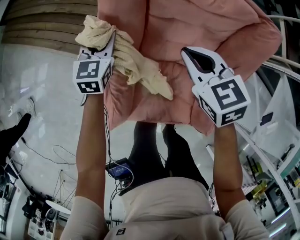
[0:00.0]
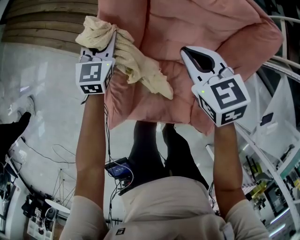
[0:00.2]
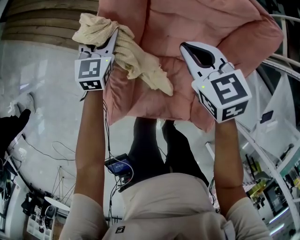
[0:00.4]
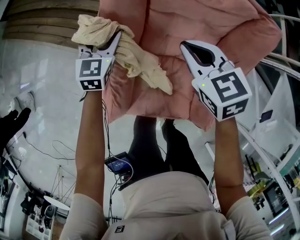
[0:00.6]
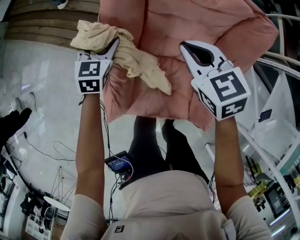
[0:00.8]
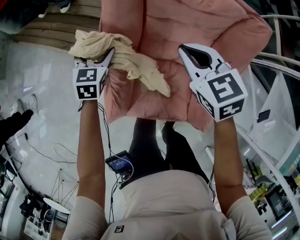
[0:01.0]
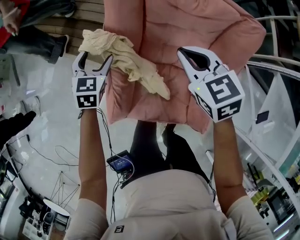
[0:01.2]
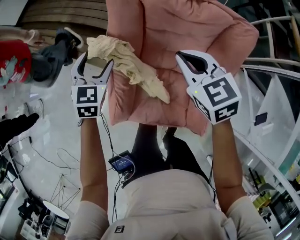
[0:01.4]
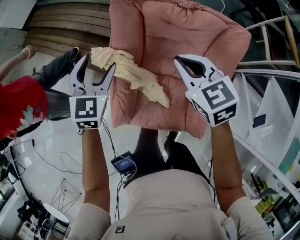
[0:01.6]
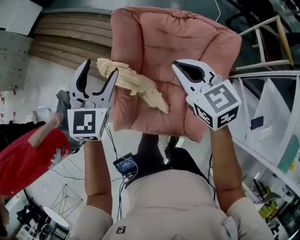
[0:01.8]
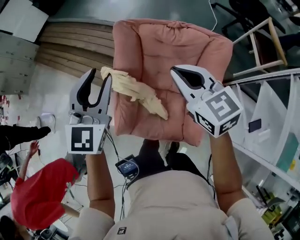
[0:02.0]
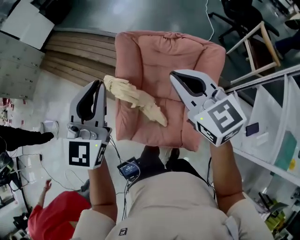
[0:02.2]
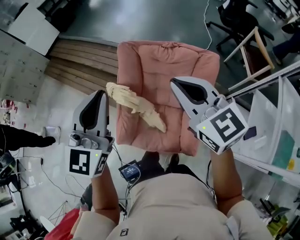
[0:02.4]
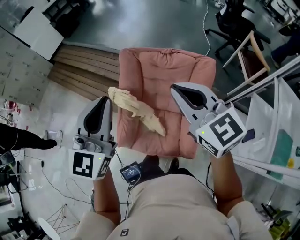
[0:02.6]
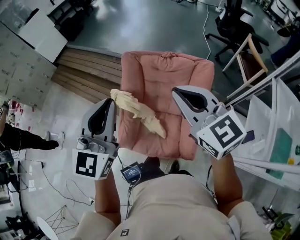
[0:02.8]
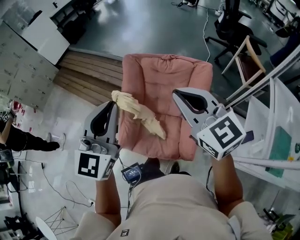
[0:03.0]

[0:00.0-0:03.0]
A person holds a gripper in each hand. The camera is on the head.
0.0 to 1.6 s: The left gripper shifts approximately 25 cm upward and backward, and opens; the right gripper heads upward, covering about 15 cm.
1.6 to 3.0 s: The grippers both shift upward and backward by roughly 40 cm. The right gripper changes its angle by some 30 degrees; the left gripper rotates some 30 degrees, and closes up.

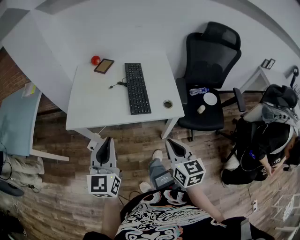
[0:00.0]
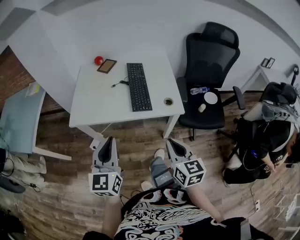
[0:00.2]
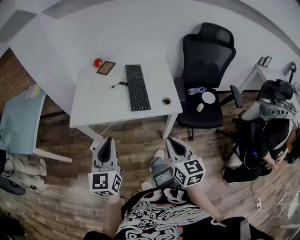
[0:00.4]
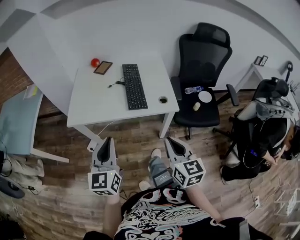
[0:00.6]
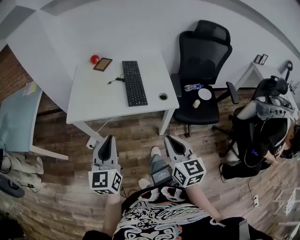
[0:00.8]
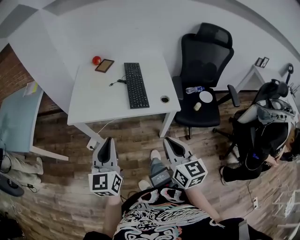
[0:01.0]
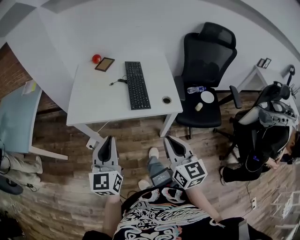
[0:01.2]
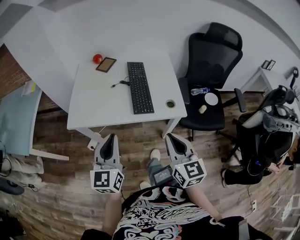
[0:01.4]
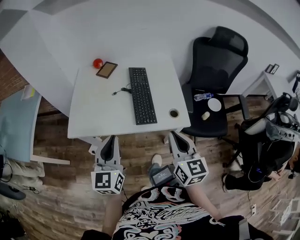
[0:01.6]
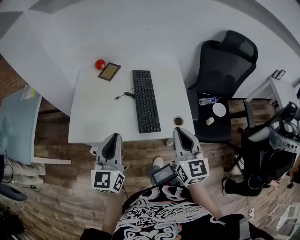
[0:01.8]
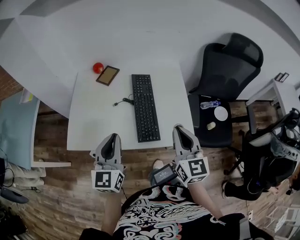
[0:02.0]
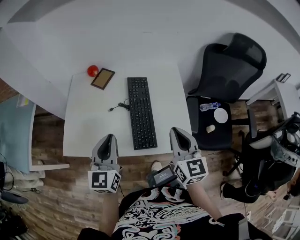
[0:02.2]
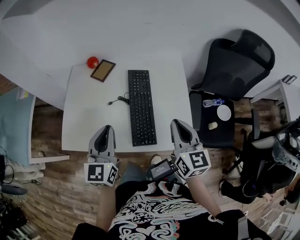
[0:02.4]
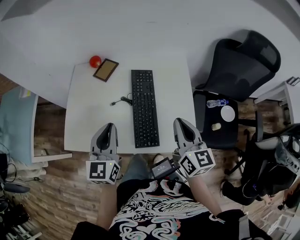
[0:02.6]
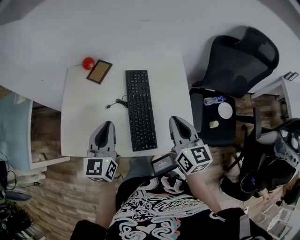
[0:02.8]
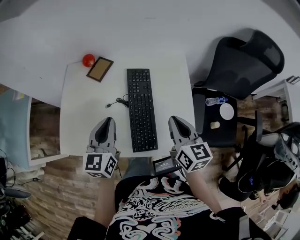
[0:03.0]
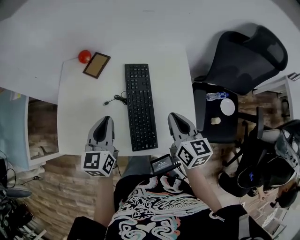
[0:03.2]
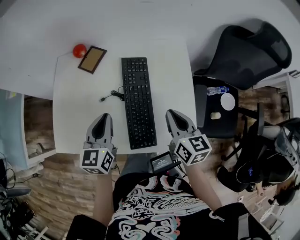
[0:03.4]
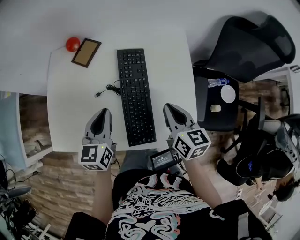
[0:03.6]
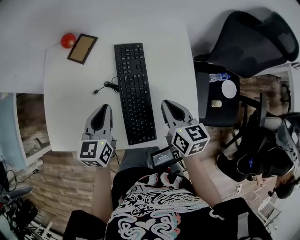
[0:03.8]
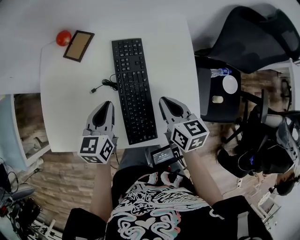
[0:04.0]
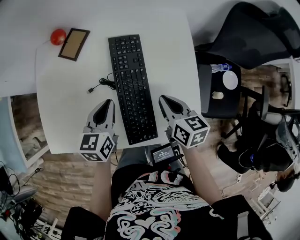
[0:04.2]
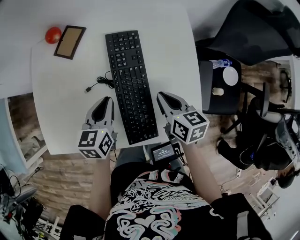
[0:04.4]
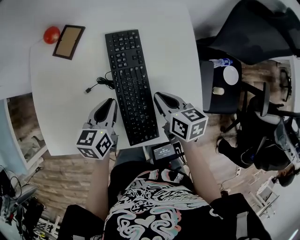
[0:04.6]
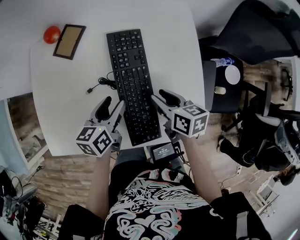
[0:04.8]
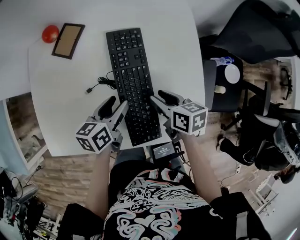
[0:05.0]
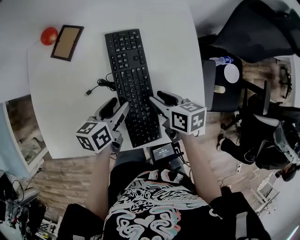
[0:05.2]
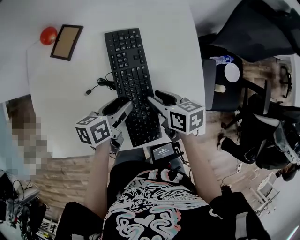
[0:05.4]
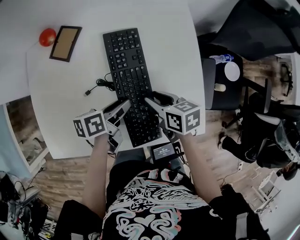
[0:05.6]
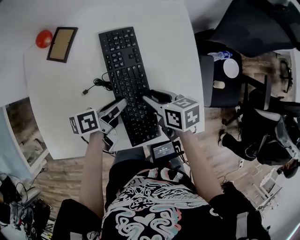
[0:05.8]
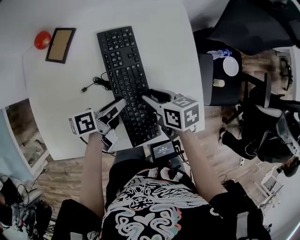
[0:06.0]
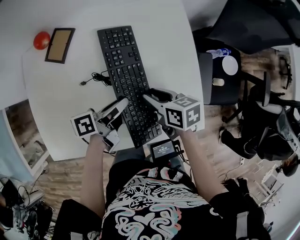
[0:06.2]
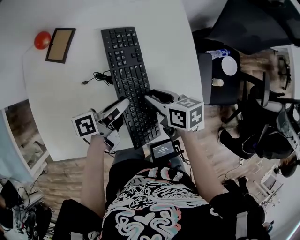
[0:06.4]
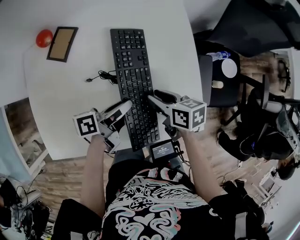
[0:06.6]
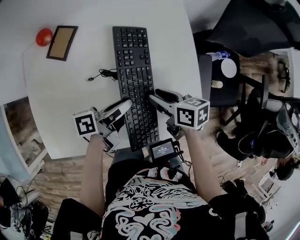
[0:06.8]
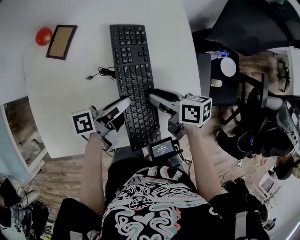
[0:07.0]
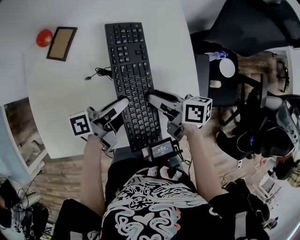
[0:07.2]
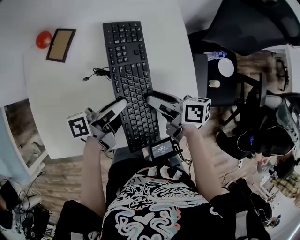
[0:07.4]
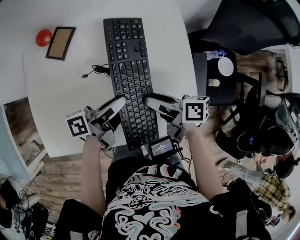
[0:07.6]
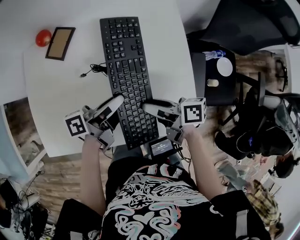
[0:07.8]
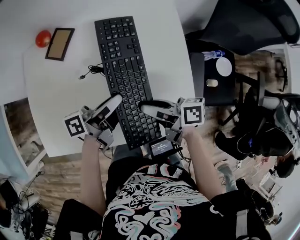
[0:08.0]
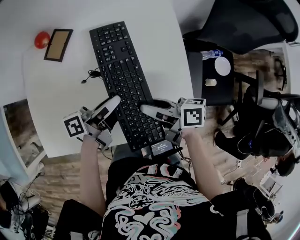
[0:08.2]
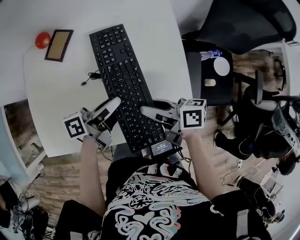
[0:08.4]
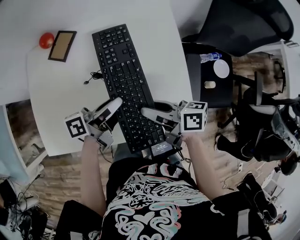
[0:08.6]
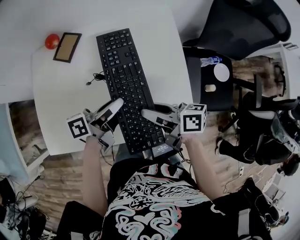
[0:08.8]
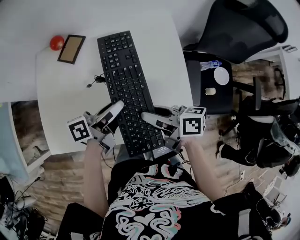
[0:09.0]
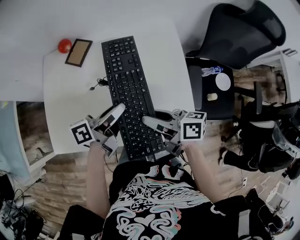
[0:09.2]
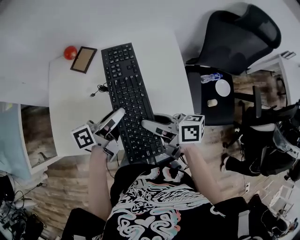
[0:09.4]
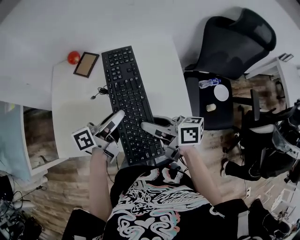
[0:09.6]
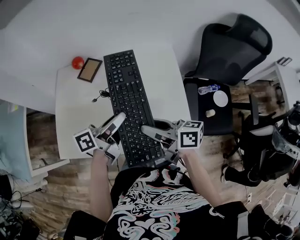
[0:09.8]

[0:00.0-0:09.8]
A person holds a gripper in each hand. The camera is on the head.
0.0 to 1.4 s: The right gripper travels backward and back again, roughly 10 cm each way; the left gripper reaches about 5 cm backward, then returns.
1.4 to 2.8 s: The grippers both shift forward by some 35 cm.
2.8 to 4.2 s: The right gripper shifts approximately 15 cm downward, and changes its angle by some 30 degrees. Meanwhile the left gripper travels downward and forward by some 20 cm, and changes its angle by roughly 20 degrees.
4.2 to 5.6 s: Both grippers travel together downward, some 5 cm. The right gripper opens its fingers. Meanwhile the left gripper rotates some 50 degrees, and opens.
5.6 to 7.0 s: The left gripper rotates about 30 degrees.
7.0 to 8.4 s: The right gripper moves about 5 cm.
8.4 to 9.8 s: There are only small adjustments of the grippers.

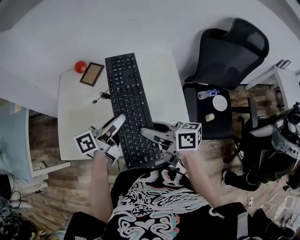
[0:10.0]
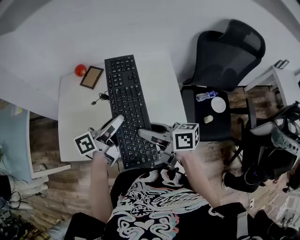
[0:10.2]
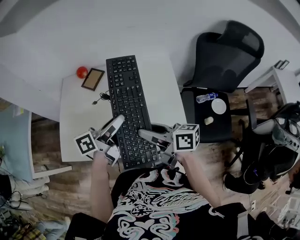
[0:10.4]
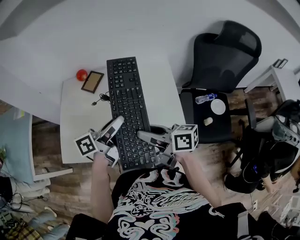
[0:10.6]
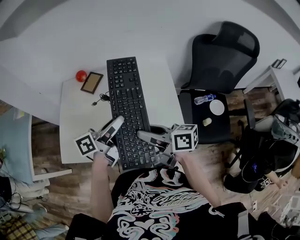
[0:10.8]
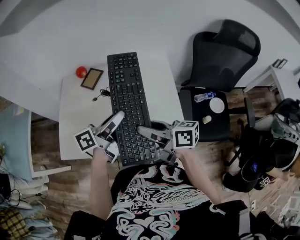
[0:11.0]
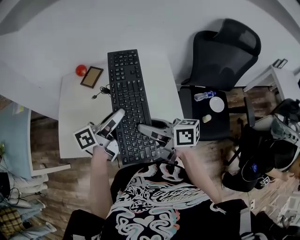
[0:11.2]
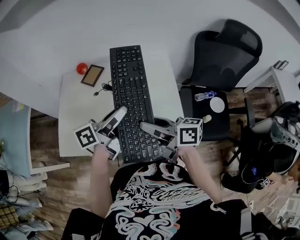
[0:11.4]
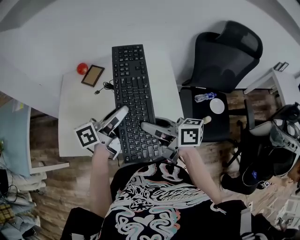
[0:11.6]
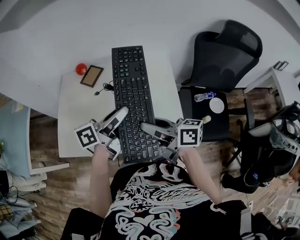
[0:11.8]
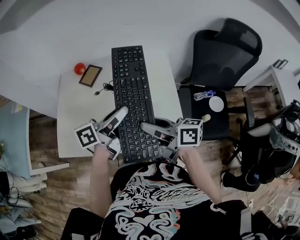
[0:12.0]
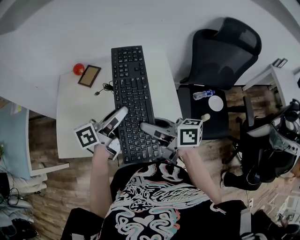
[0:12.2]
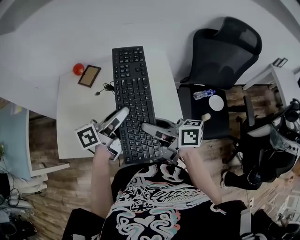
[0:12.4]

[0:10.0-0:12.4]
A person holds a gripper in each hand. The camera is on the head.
10.0 to 11.2 s: There are only small adjustments of the grippers.
11.2 to 12.4 s: Neither gripper changes place.

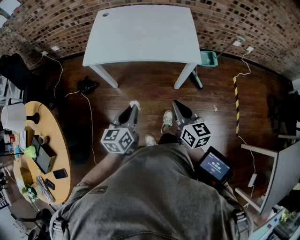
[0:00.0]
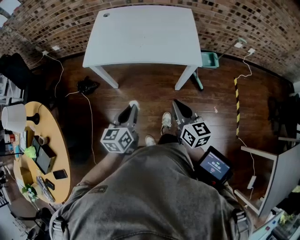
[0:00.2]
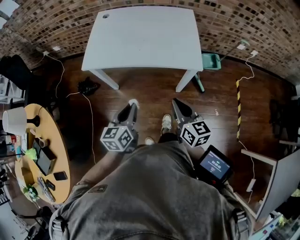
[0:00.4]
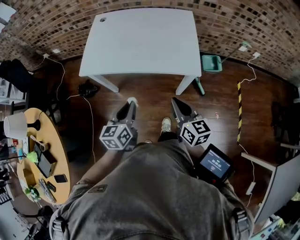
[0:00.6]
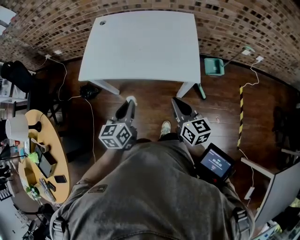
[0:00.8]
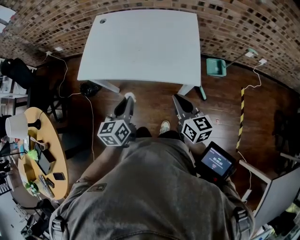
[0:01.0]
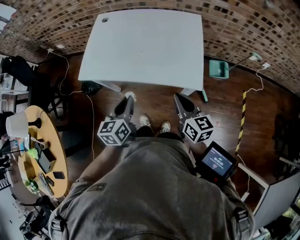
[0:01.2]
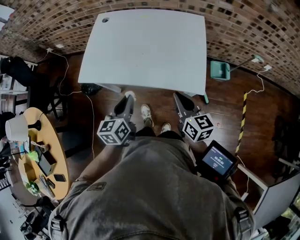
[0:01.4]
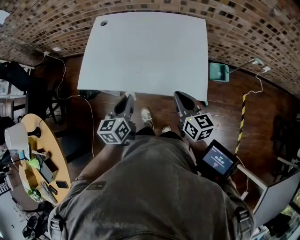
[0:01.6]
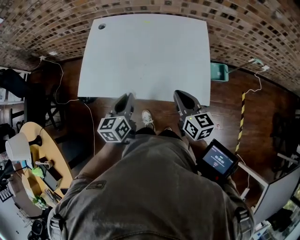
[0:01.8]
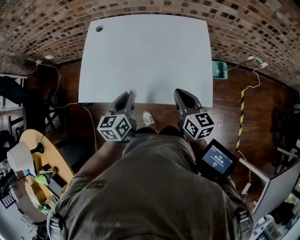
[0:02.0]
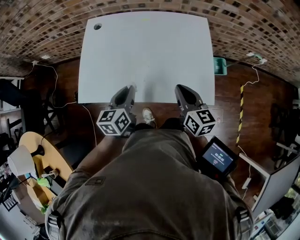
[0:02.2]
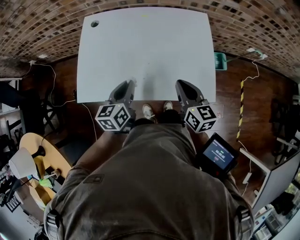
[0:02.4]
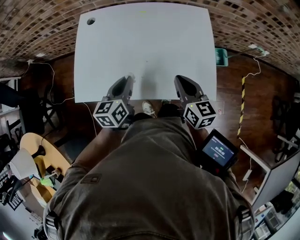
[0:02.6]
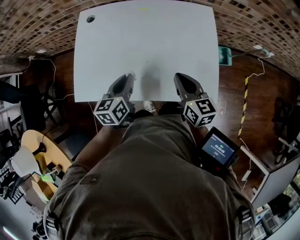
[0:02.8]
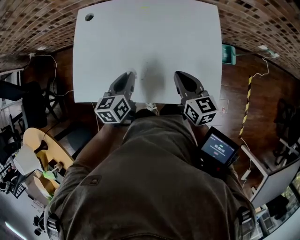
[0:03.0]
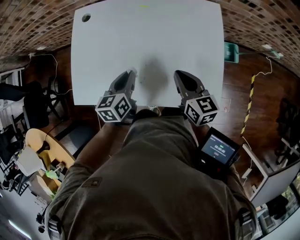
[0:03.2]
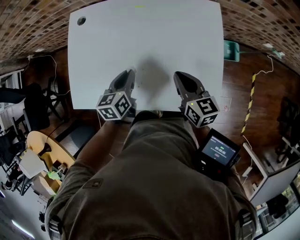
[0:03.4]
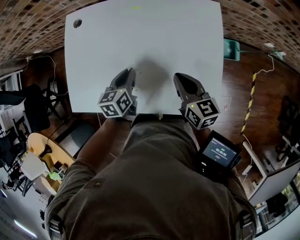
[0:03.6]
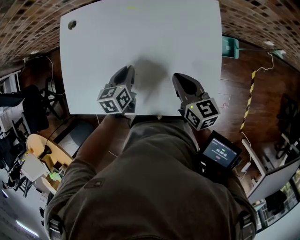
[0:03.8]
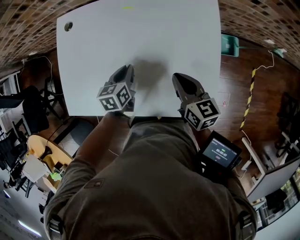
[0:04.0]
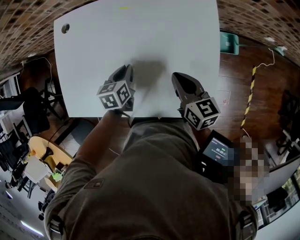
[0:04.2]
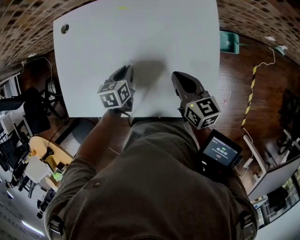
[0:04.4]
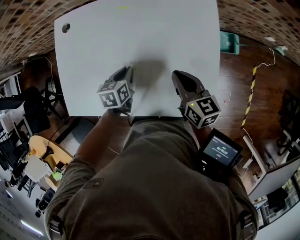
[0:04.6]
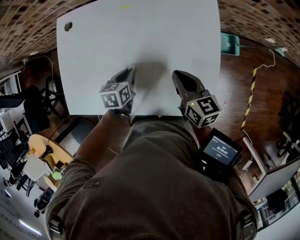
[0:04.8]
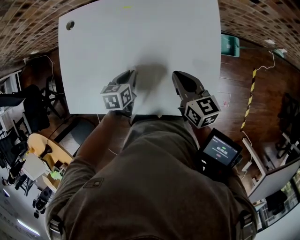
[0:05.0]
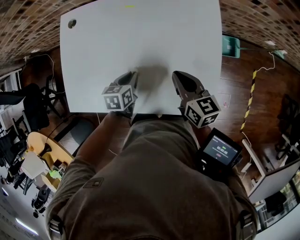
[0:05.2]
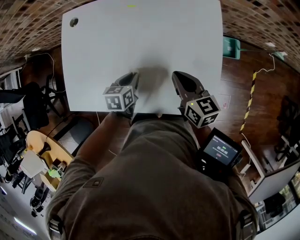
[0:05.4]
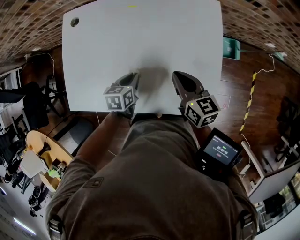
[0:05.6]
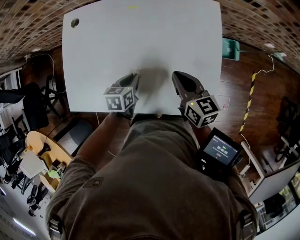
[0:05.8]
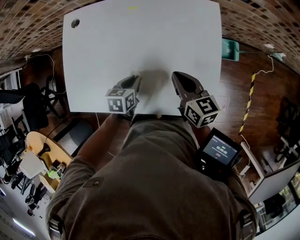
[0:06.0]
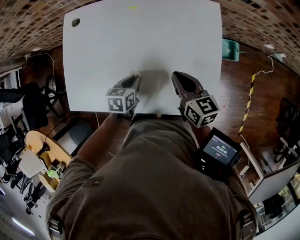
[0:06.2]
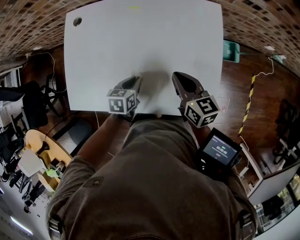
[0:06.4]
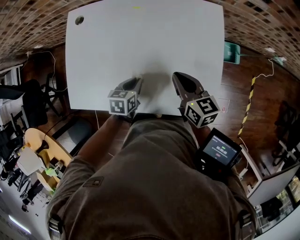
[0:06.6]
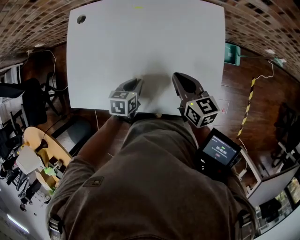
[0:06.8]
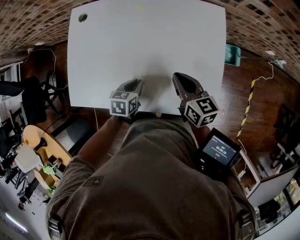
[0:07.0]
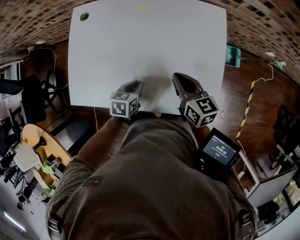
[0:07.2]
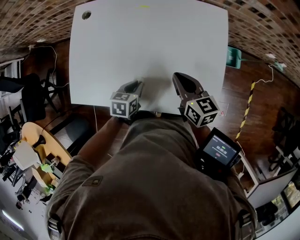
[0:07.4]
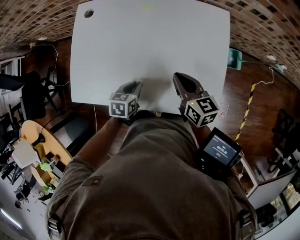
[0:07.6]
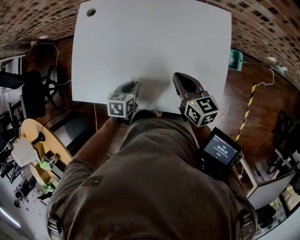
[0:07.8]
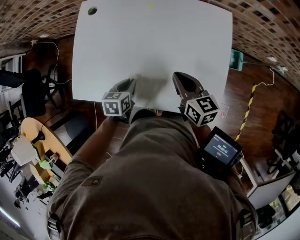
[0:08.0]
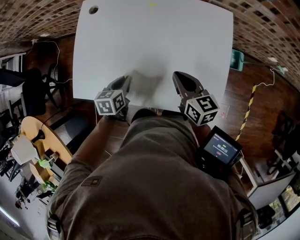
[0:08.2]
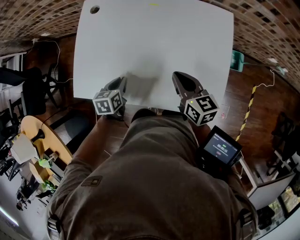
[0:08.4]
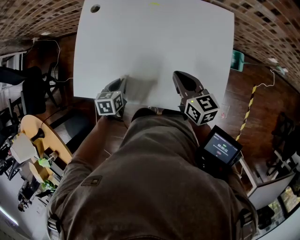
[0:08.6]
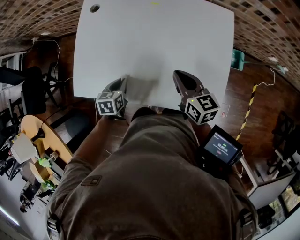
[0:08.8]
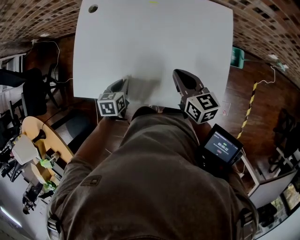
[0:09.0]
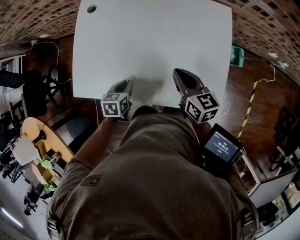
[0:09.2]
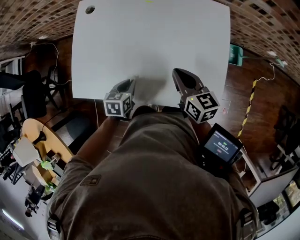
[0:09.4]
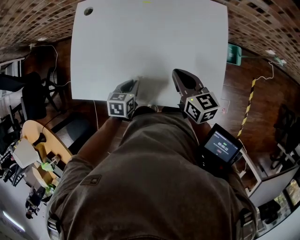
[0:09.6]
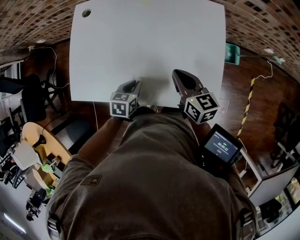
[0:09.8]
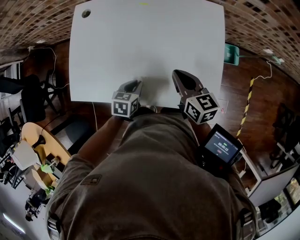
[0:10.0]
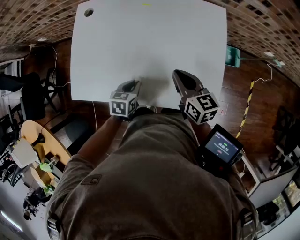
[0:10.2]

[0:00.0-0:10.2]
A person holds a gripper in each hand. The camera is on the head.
0.0 to 1.4 s: Both grippers move forward, about 20 cm.
1.4 to 3.0 s: The two grippers go approximately 20 cm forward.
3.0 to 4.4 s: The left gripper heads downward, forward and to the right, covering some 15 cm, and swivels roughly 20 degrees. Meanwhile the right gripper is displaced forward and to the right by some 5 cm.
4.4 to 5.8 s: The left gripper goes approximately 5 cm backward.
5.8 to 7.2 s: The grippers make only small movements.
7.2 to 8.8 s: The left gripper is displaced to the left by about 10 cm.
8.8 to 10.2 s: The left gripper goes roughly 10 cm to the right.
